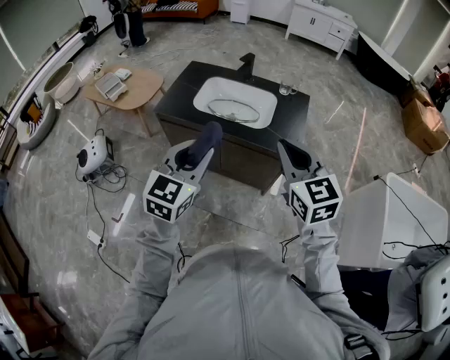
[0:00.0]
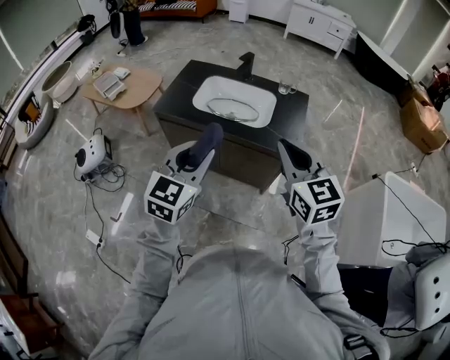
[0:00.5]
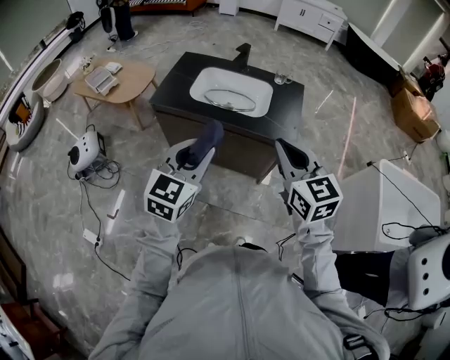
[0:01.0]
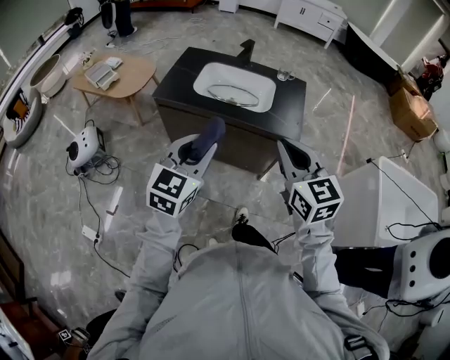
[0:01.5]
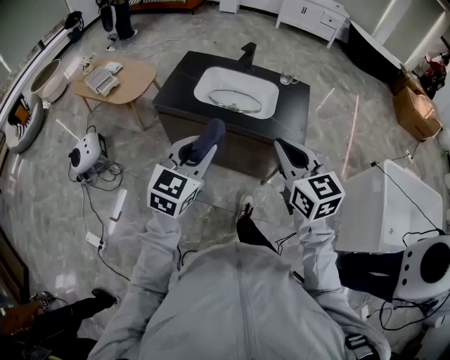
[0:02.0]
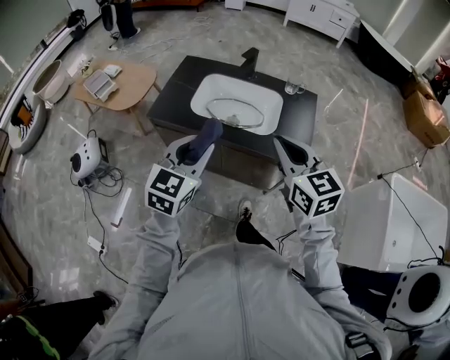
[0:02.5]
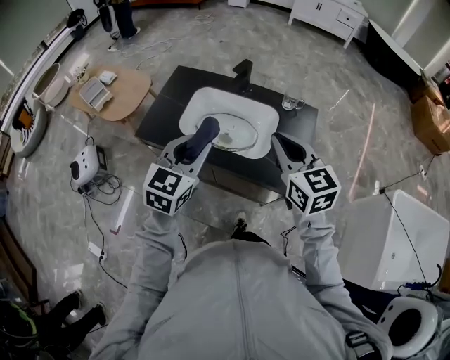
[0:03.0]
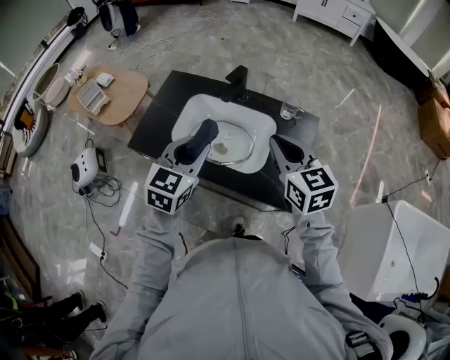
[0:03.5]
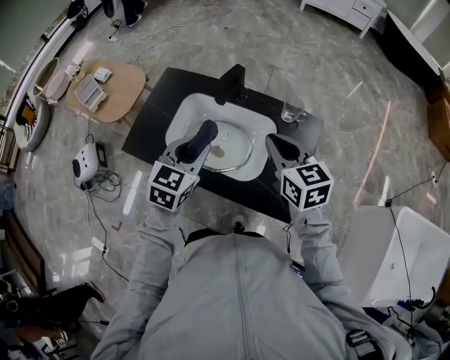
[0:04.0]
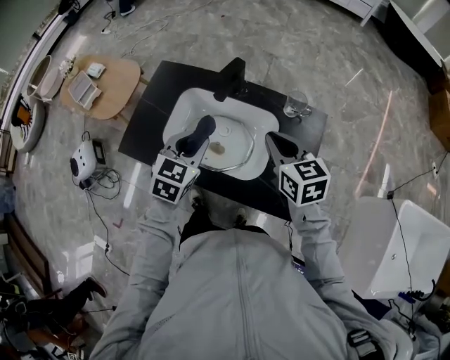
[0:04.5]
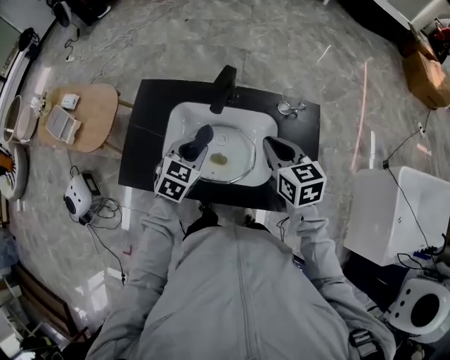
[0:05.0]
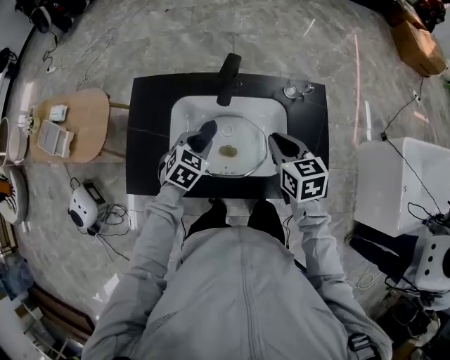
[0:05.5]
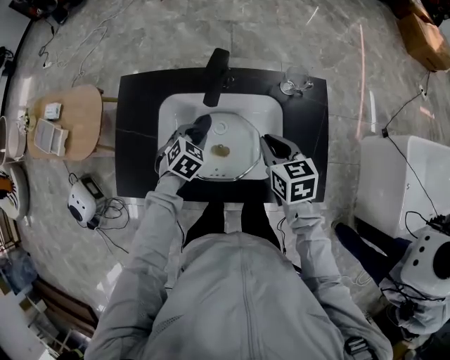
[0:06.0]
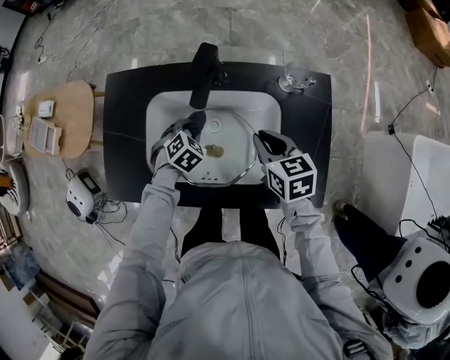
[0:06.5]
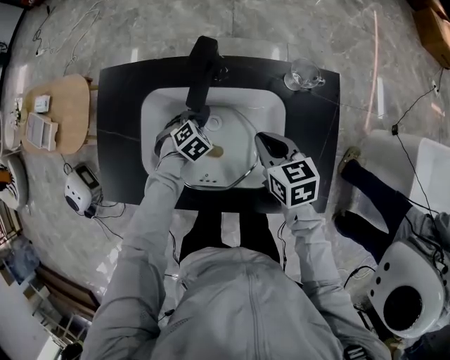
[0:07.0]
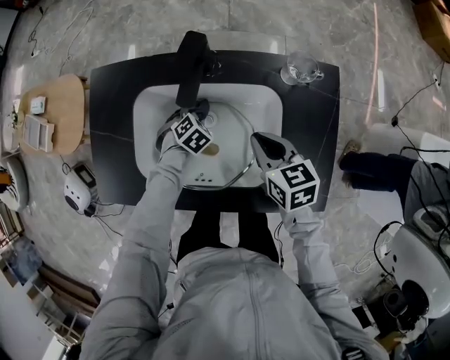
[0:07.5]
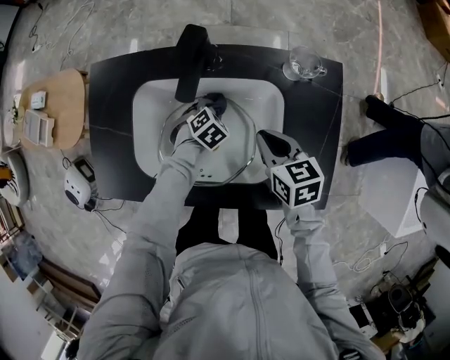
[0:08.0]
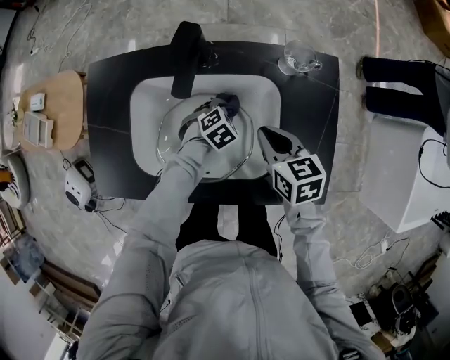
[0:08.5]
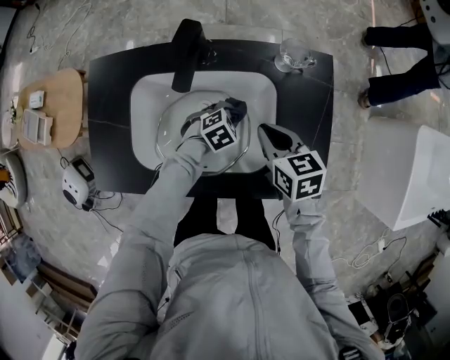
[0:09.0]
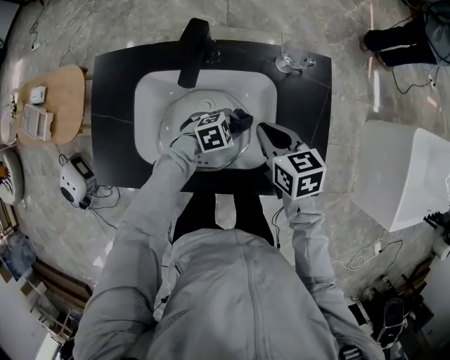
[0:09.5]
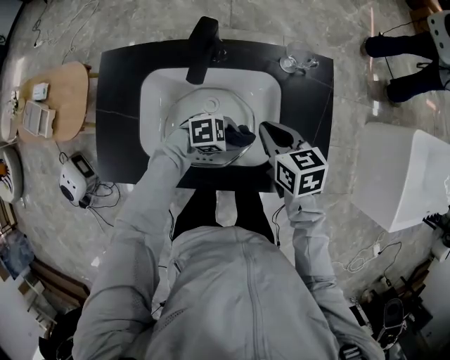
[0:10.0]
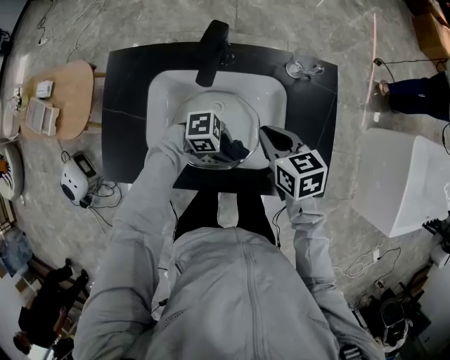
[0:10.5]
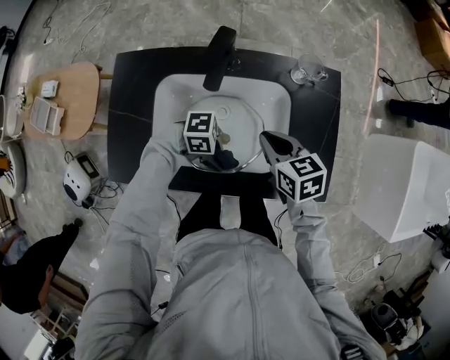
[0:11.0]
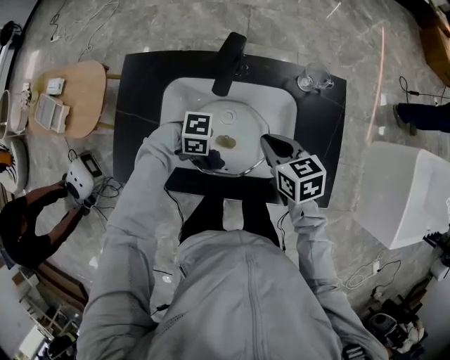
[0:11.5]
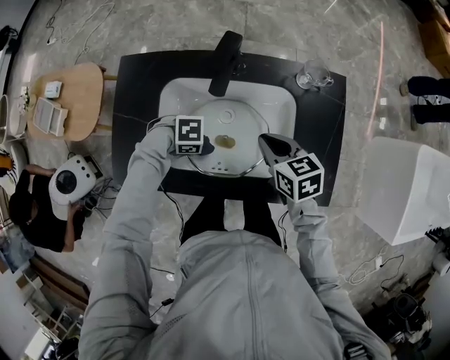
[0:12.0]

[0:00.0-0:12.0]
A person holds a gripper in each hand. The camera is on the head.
0:00.0 to 0:02.0: The left gripper shifts by roughly 5 cm. The right gripper heads to the left, covering about 5 cm.
0:02.0 to 0:04.0: The two grippers go roughly 40 cm forward.
0:04.0 to 0:06.0: The right gripper heads downward, covering roughly 15 cm, and turns by approximately 30 degrees, while the left gripper is displaced downward and forward by some 25 cm, and changes its angle by some 40 degrees.
0:06.0 to 0:08.0: The left gripper moves downward and to the right, approximately 15 cm. Meanwhile the right gripper is displaced downward by roughly 10 cm.
0:08.0 to 0:10.0: The left gripper moves some 20 cm, and turns by some 50 degrees.
0:10.0 to 0:12.0: The left gripper shifts by about 20 cm, and swivels roughly 30 degrees.

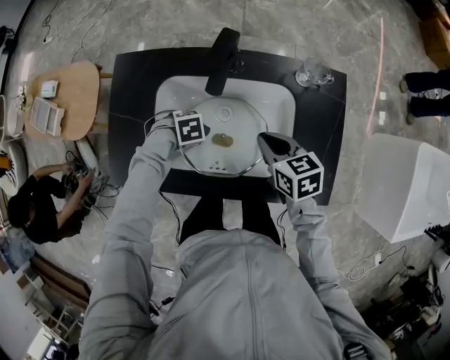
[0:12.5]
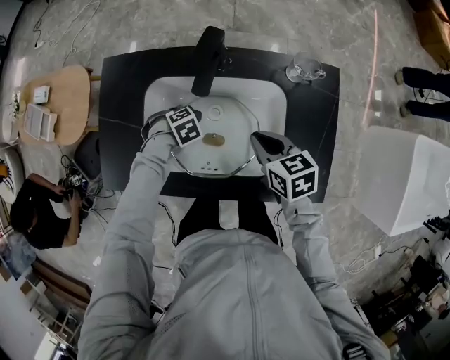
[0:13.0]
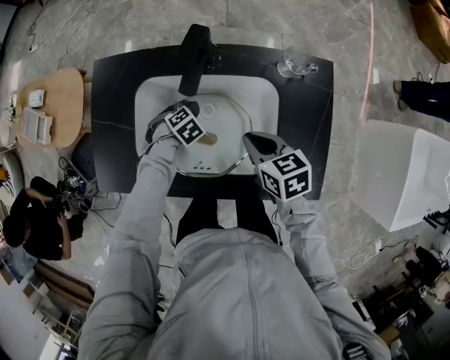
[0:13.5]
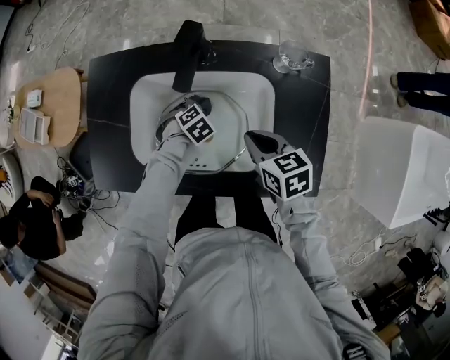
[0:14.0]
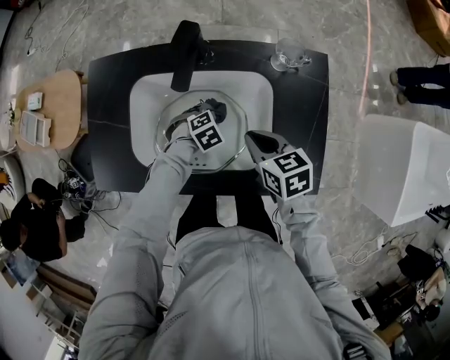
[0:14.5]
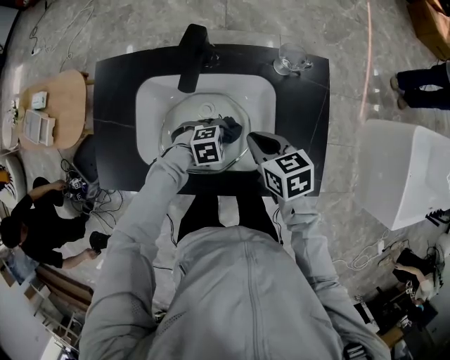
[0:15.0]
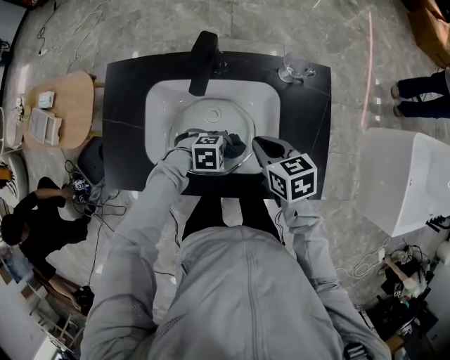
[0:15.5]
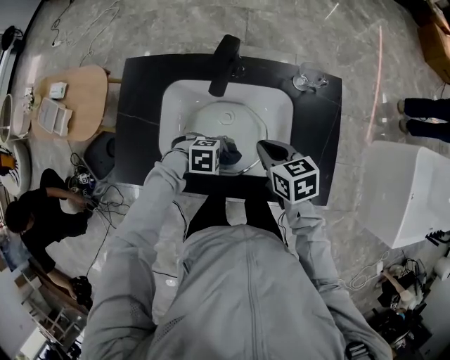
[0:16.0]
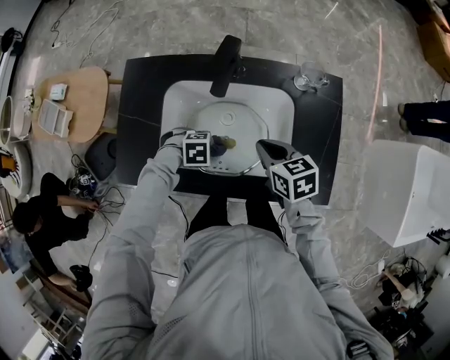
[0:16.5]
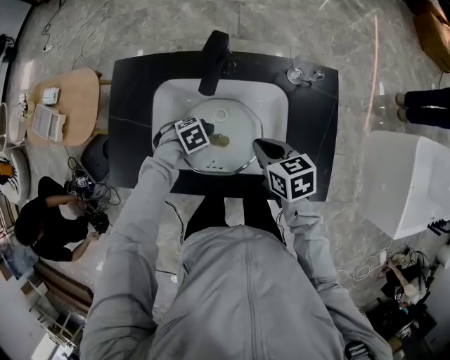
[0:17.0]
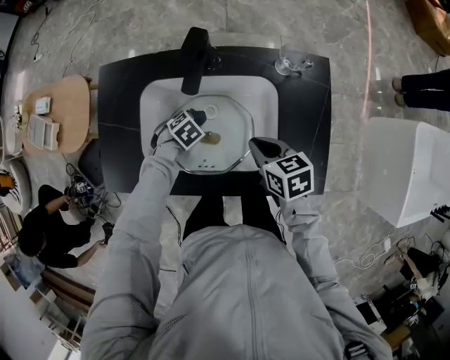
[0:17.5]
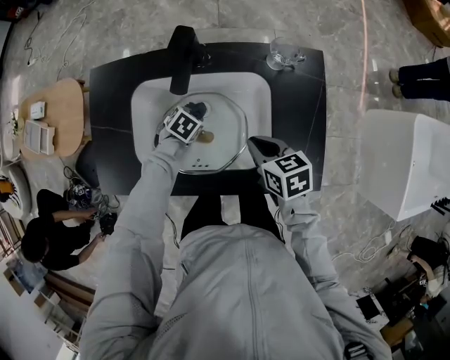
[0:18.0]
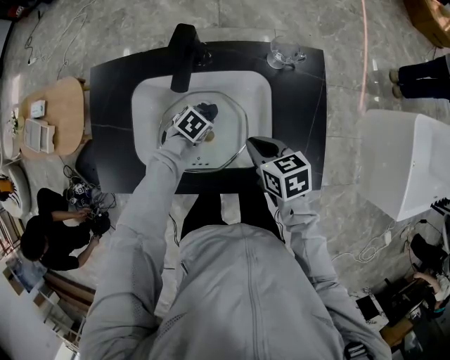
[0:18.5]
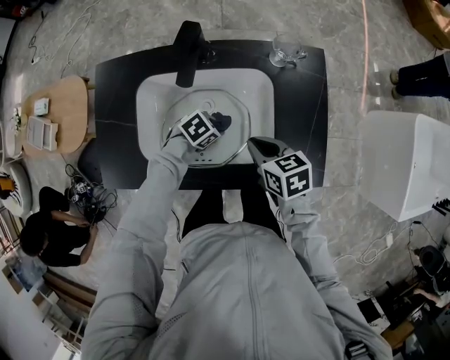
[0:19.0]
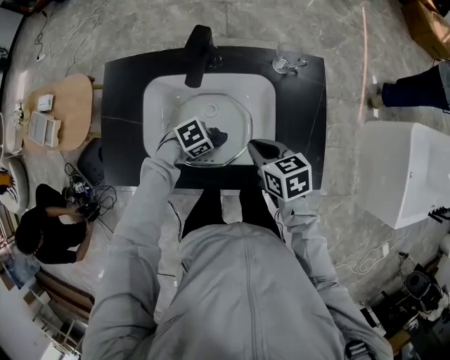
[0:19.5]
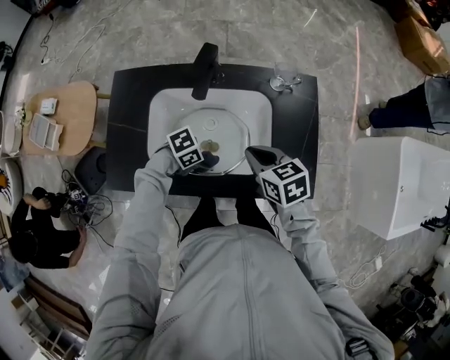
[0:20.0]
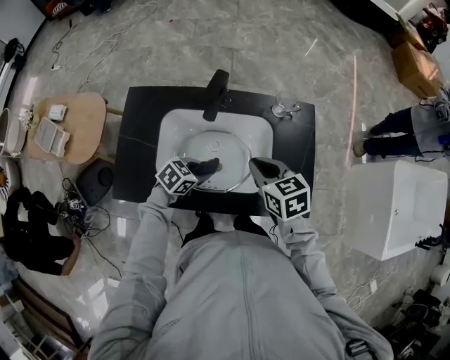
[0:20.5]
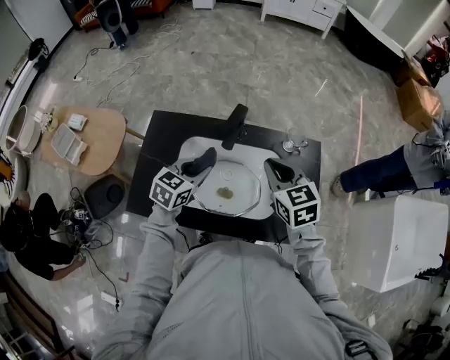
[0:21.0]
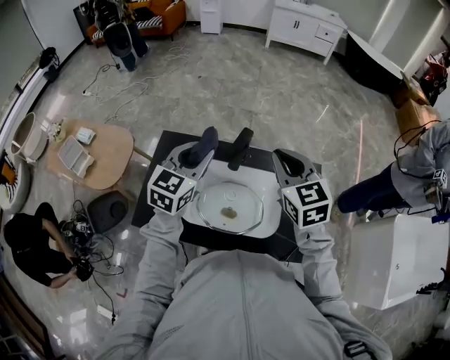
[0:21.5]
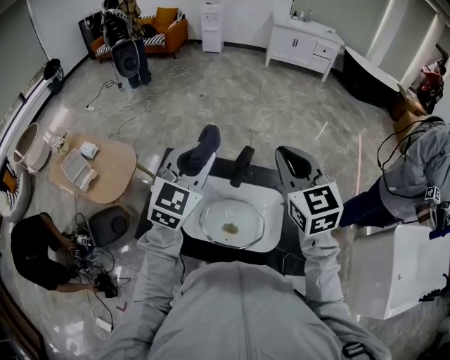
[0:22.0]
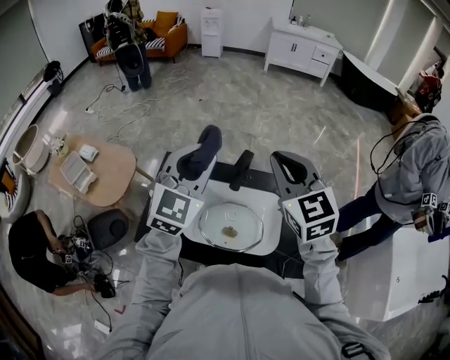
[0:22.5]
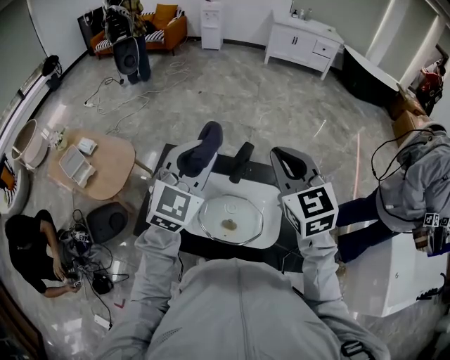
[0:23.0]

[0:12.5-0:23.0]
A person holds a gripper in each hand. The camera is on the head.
0:12.5 to 0:14.5: The left gripper changes place by about 15 cm, and changes its angle by approximately 30 degrees.
0:14.5 to 0:16.5: The left gripper shifts by approximately 15 cm, and changes its angle by approximately 30 degrees.
0:16.5 to 0:19.0: The left gripper moves some 10 cm, and turns by roughly 30 degrees. Meanwhile the right gripper moves roughly 5 cm.
0:19.0 to 0:21.0: The grippers both shift upward by about 20 cm. The right gripper changes its angle by approximately 30 degrees. The left gripper rotates about 50 degrees.
0:21.0 to 0:23.0: Both grippers travel together upward, approximately 20 cm. The right gripper turns by roughly 20 degrees; the left gripper swivels about 40 degrees.

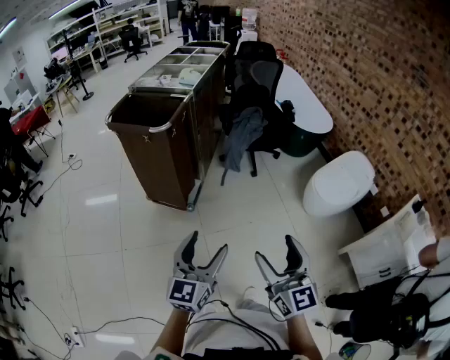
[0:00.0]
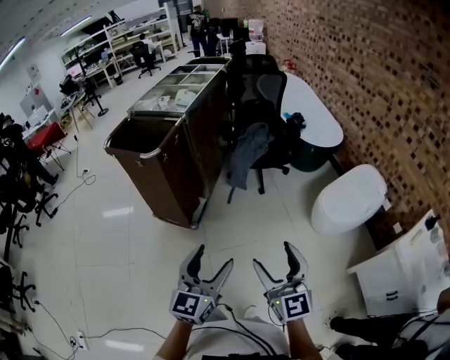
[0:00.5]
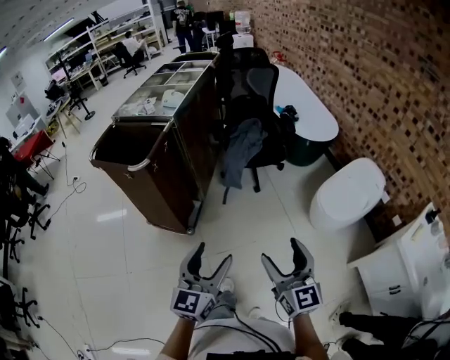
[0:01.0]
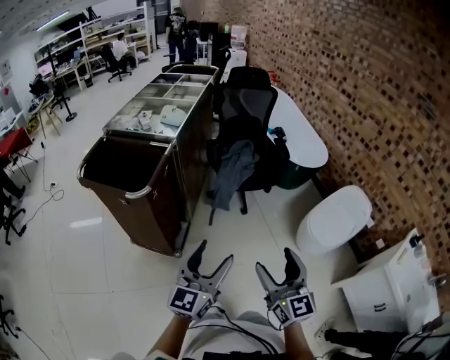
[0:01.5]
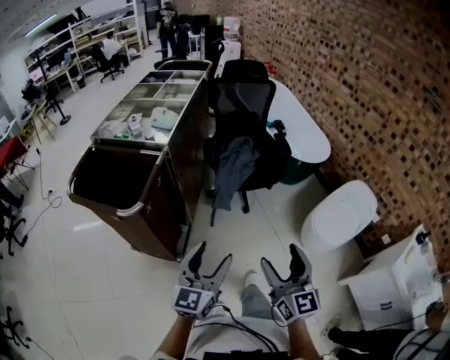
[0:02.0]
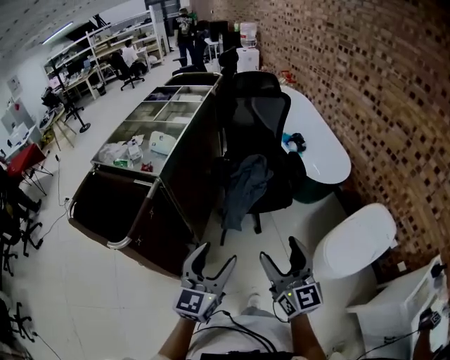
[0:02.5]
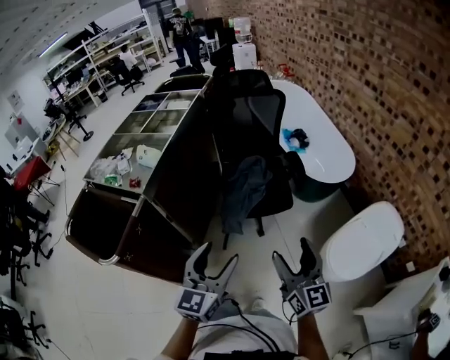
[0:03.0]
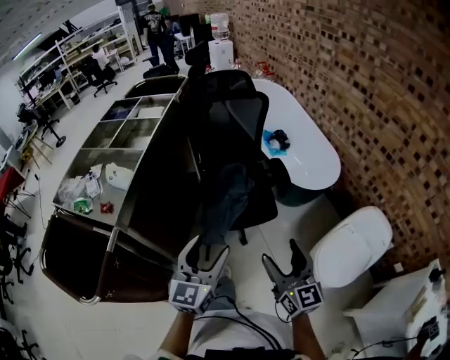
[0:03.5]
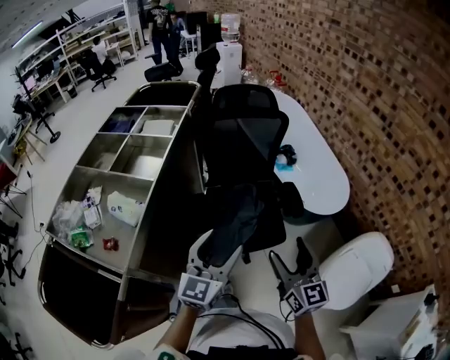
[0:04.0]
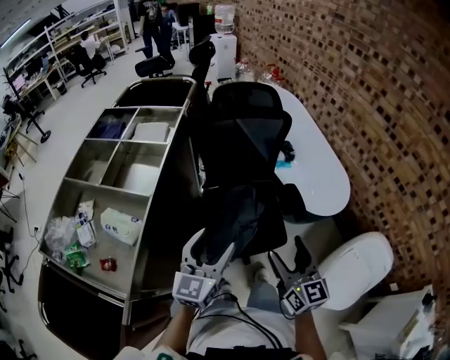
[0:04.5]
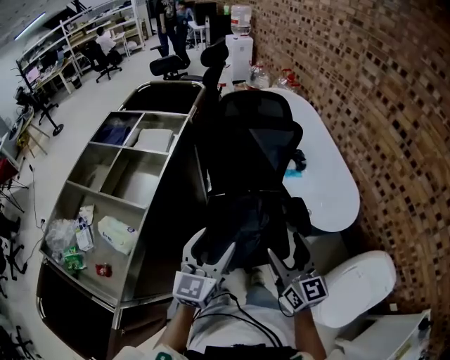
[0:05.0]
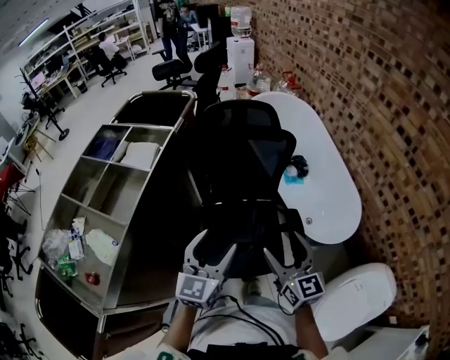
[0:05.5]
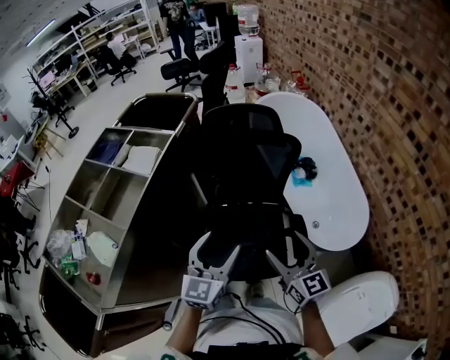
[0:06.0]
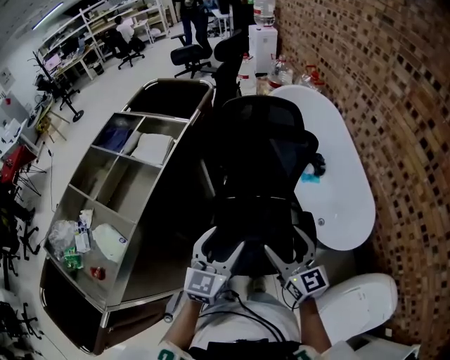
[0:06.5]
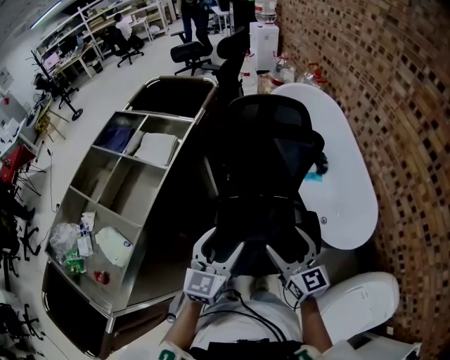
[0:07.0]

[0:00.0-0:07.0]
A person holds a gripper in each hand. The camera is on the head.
0:00.0 to 0:02.0: The grippers both shift forward by some 35 cm.
0:02.0 to 0:03.5: Both grippers travel together forward, approximately 35 cm.
0:03.5 to 0:05.0: The grippers both shift forward by some 30 cm.
0:05.0 to 0:07.0: Both grippers move forward, roughly 10 cm.
